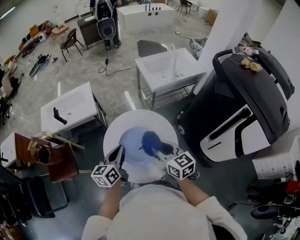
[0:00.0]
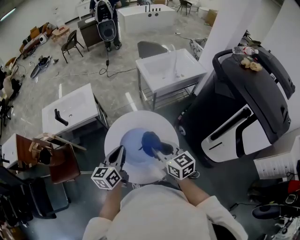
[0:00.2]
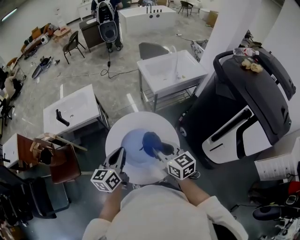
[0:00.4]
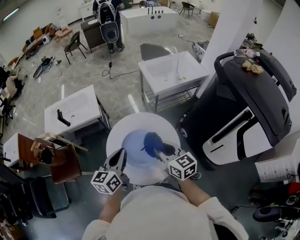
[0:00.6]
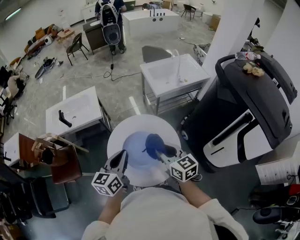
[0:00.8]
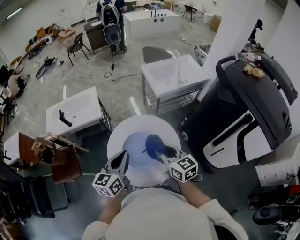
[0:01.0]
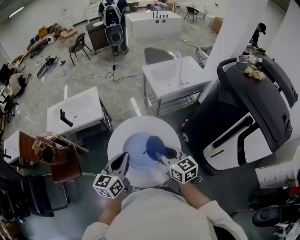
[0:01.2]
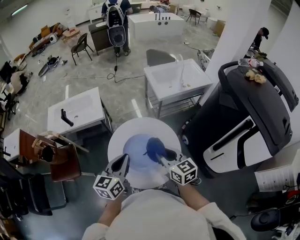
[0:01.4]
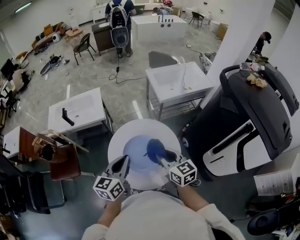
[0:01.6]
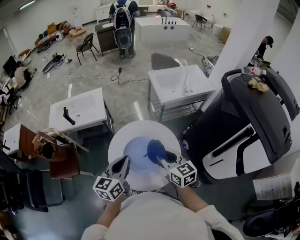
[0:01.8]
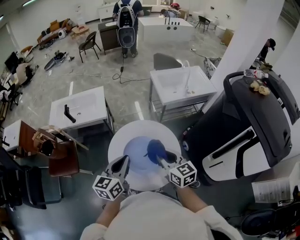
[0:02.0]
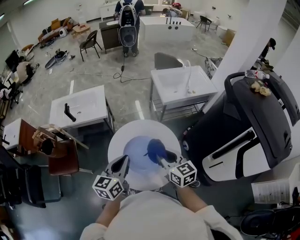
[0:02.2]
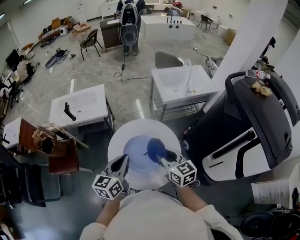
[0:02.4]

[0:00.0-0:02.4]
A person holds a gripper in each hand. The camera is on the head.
0:00.0 to 0:01.2: The left gripper goes some 5 cm upward.
0:01.2 to 0:02.4: Neither gripper changes place.

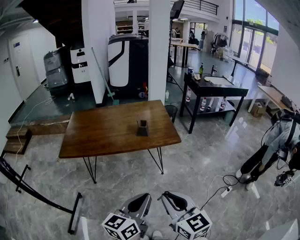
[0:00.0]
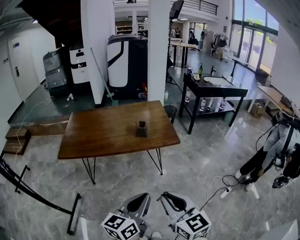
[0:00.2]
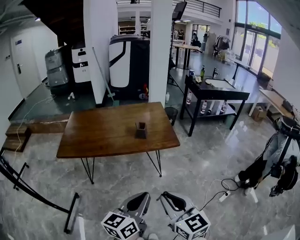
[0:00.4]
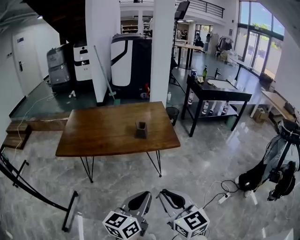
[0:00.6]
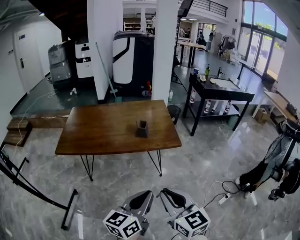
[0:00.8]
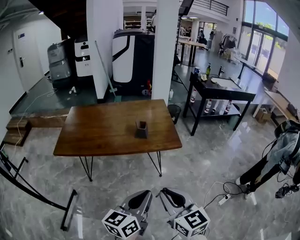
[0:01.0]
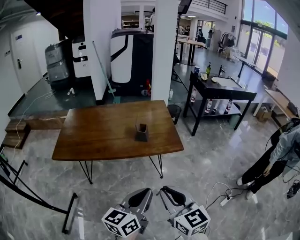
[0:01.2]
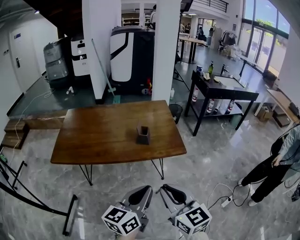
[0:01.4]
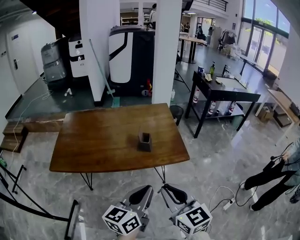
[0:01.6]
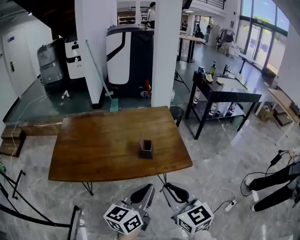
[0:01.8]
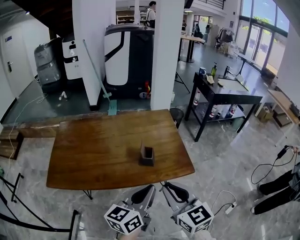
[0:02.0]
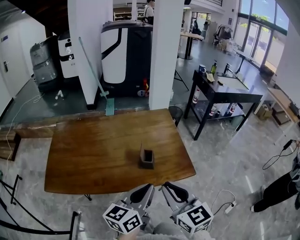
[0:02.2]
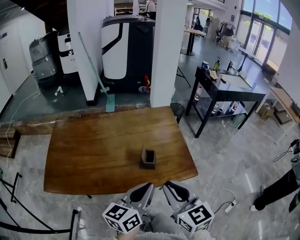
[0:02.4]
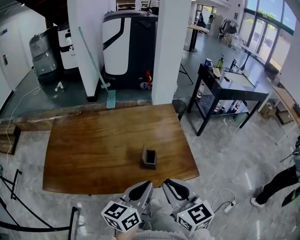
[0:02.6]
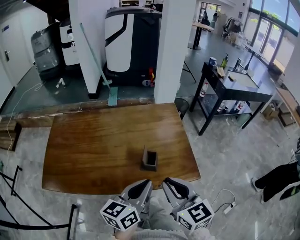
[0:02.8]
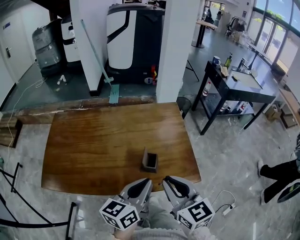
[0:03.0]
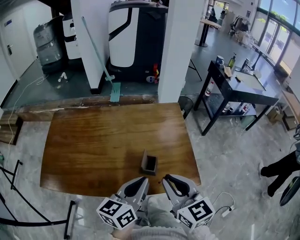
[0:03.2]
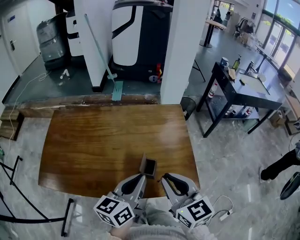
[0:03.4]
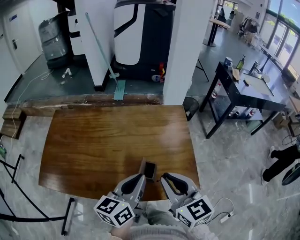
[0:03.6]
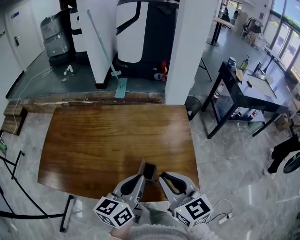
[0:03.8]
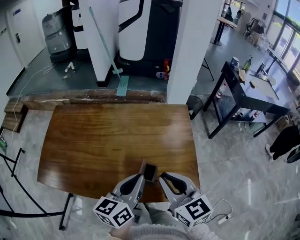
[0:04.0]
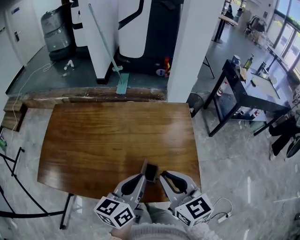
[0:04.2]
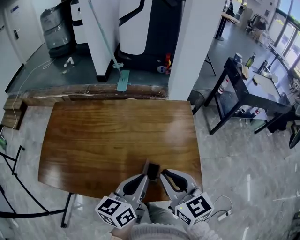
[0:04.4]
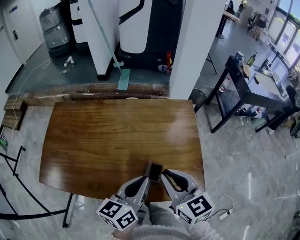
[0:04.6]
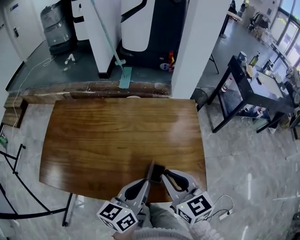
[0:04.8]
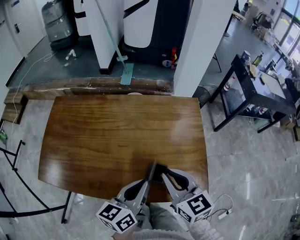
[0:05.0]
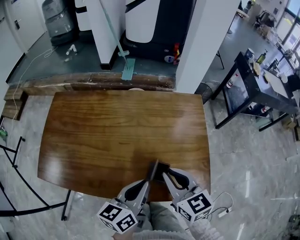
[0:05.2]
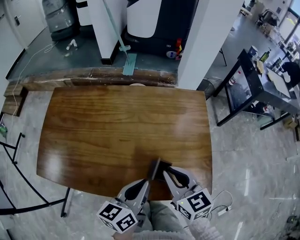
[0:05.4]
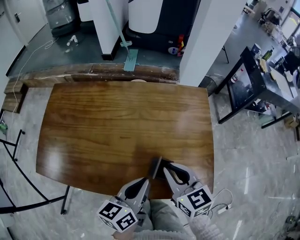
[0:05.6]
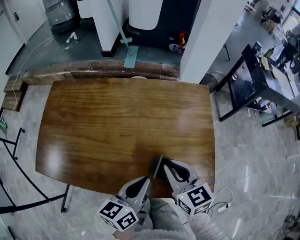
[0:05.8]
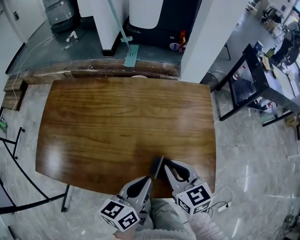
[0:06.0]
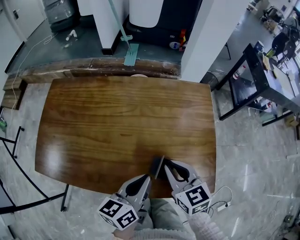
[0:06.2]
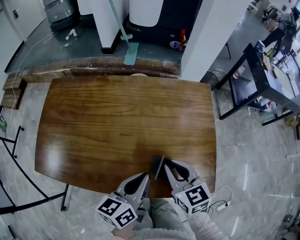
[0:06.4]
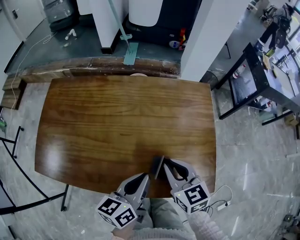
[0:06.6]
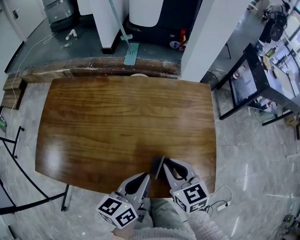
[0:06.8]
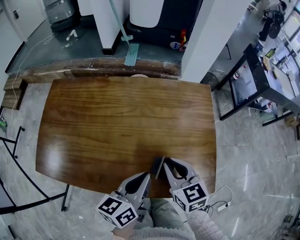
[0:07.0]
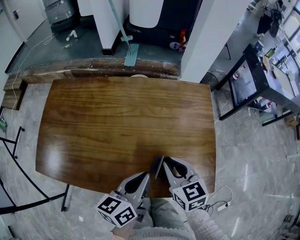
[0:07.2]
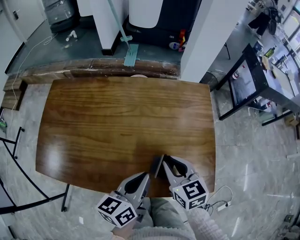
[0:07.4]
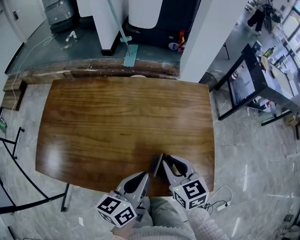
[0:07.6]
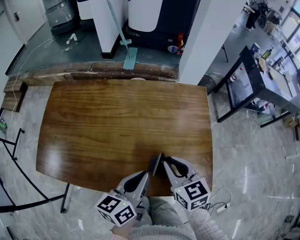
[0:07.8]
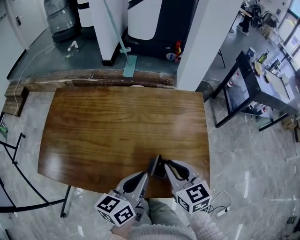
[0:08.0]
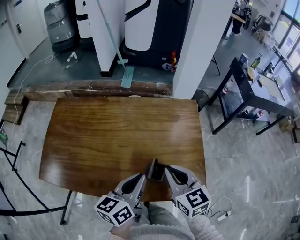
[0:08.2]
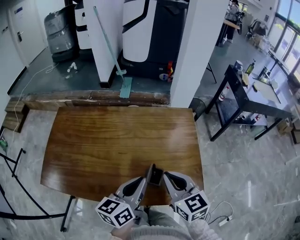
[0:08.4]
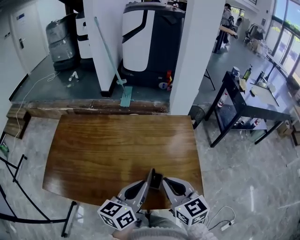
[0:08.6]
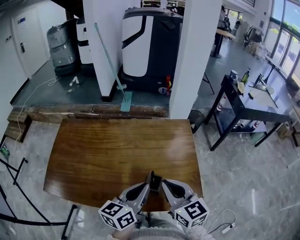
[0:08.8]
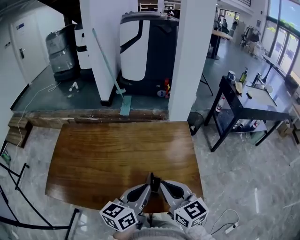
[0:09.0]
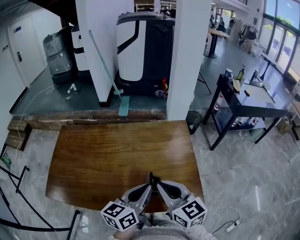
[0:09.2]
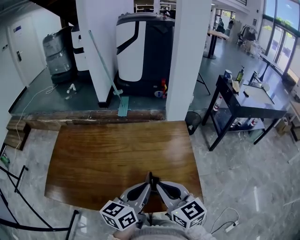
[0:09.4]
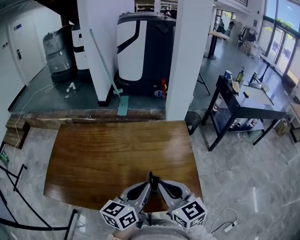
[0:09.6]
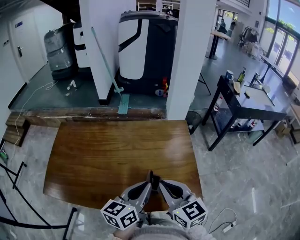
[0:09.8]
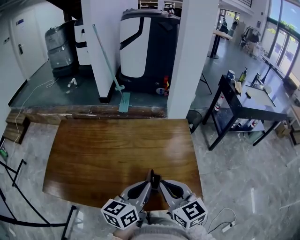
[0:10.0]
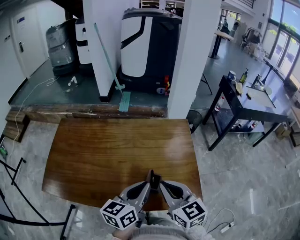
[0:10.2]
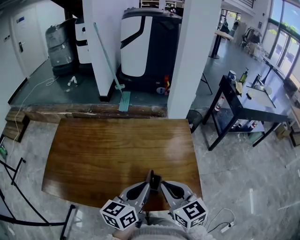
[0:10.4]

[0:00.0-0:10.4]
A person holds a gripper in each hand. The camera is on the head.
0:00.0 to 0:01.4: The grippers both shift forward by roughly 15 cm.
0:01.4 to 0:03.0: The grippers both shift forward by roughly 30 cm.
0:03.0 to 0:04.4: The grippers both shift forward by some 10 cm.
0:04.4 to 0:06.0: Both grippers travel together downward, approximately 10 cm.
0:06.0 to 0:07.4: The grippers make only small movements.
0:07.4 to 0:09.0: The right gripper moves upward and backward, about 15 cm. The left gripper shifts roughly 10 cm upward.
0:09.0 to 0:10.4: The grippers stay close to where they were, moving slightly.

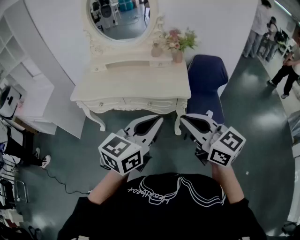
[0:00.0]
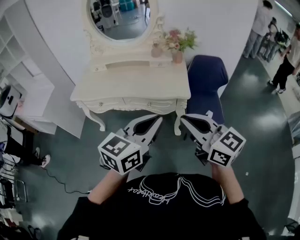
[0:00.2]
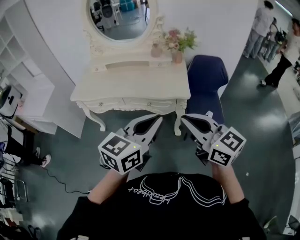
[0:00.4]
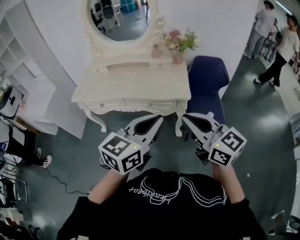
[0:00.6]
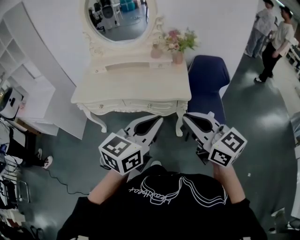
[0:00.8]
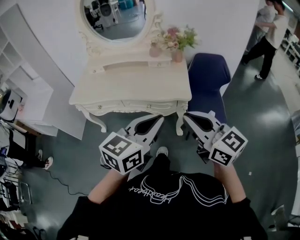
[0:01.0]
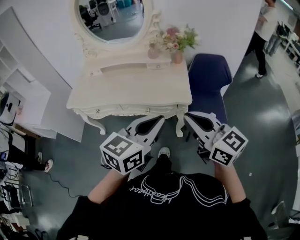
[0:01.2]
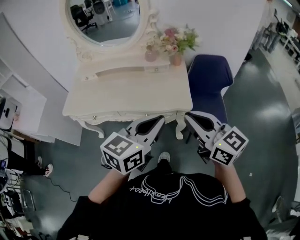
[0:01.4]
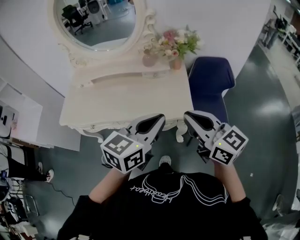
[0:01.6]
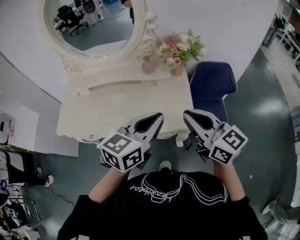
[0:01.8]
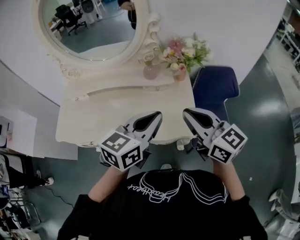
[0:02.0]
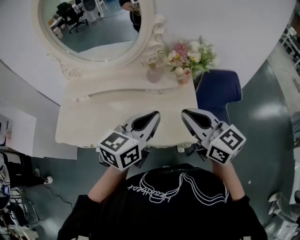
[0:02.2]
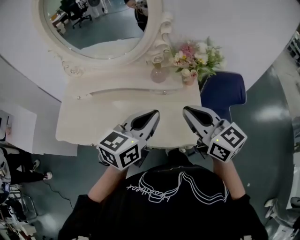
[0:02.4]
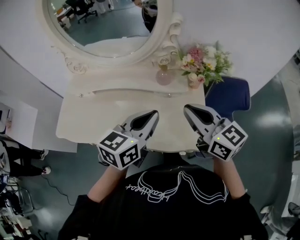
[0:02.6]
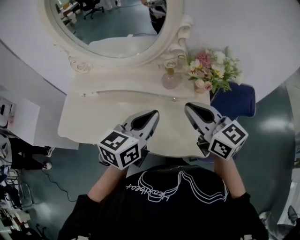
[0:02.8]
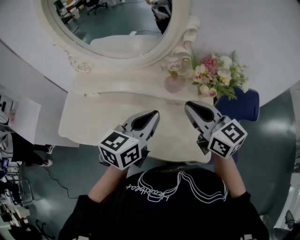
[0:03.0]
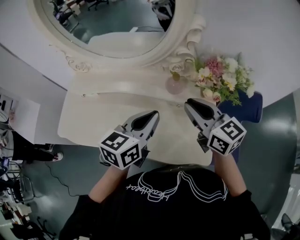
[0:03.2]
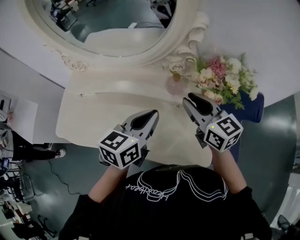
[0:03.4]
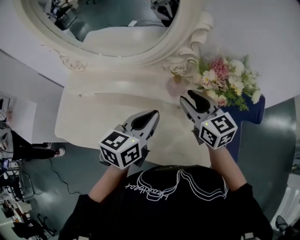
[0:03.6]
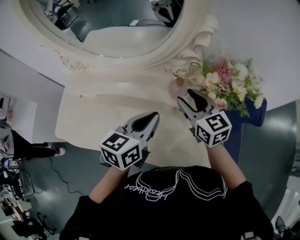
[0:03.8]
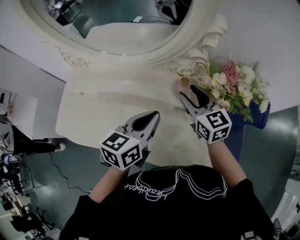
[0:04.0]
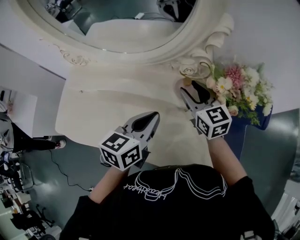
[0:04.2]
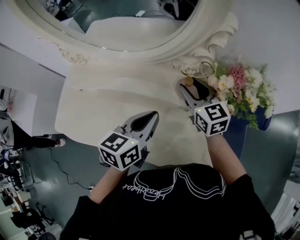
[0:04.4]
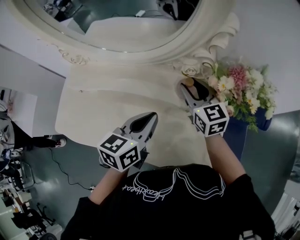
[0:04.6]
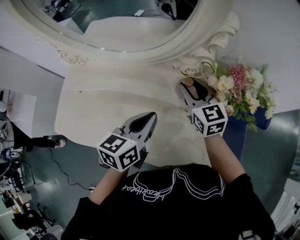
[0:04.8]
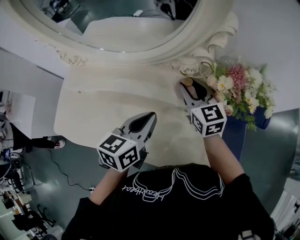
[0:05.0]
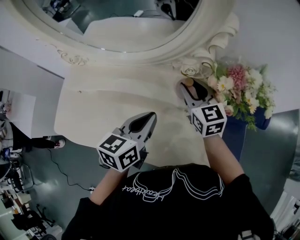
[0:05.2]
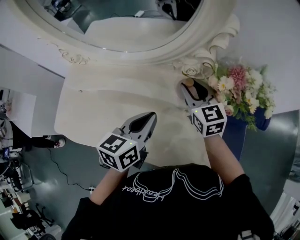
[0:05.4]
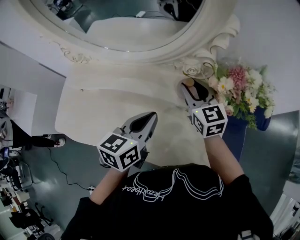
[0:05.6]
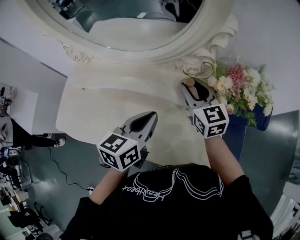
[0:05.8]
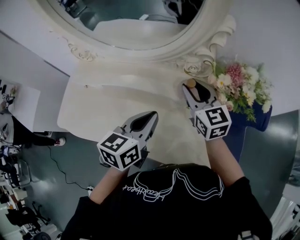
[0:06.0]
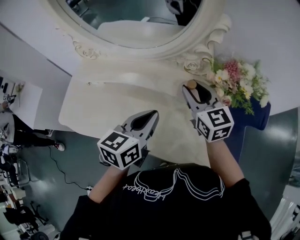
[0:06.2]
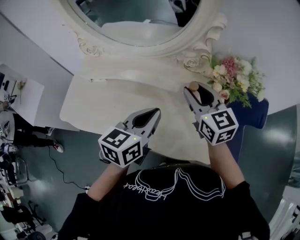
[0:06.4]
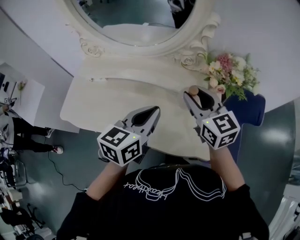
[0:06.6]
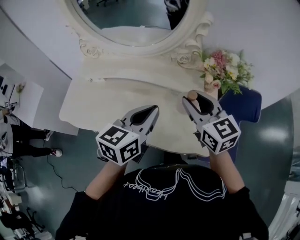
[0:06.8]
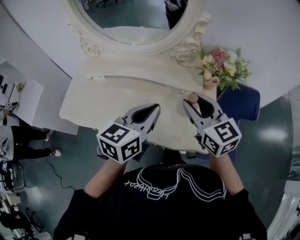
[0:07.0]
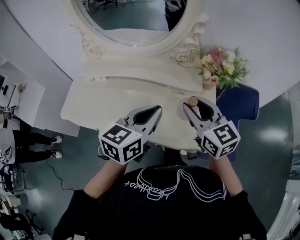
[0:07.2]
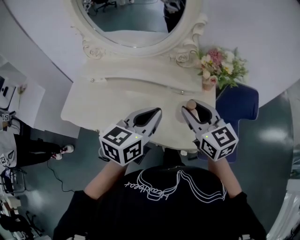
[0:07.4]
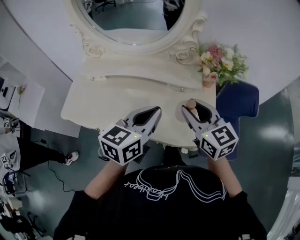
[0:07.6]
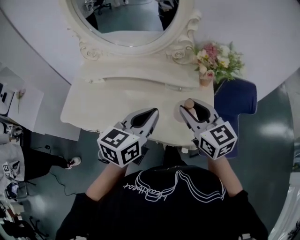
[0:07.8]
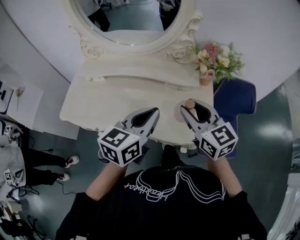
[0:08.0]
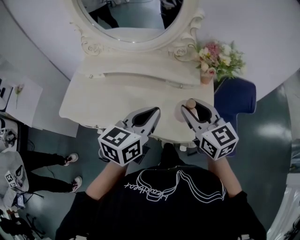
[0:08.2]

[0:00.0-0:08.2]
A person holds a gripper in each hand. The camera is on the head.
0:00.0 to 0:01.6: Both grippers move forward, about 20 cm.
0:01.6 to 0:03.2: The grippers both shift forward by about 30 cm.
0:03.2 to 0:05.0: The left gripper heads downward and forward, covering some 10 cm; the right gripper goes about 15 cm forward and downward, and opens its fingers.
0:05.0 to 0:06.6: Both grippers travel together backward and upward, approximately 15 cm.
0:06.6 to 0:08.2: The right gripper heads backward, covering roughly 10 cm. Meanwhile the left gripper is displaced backward by some 10 cm.

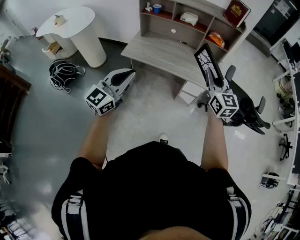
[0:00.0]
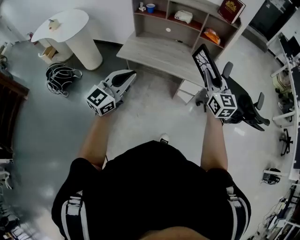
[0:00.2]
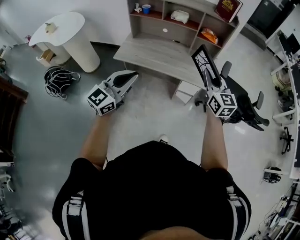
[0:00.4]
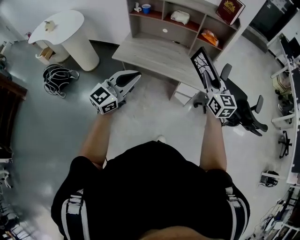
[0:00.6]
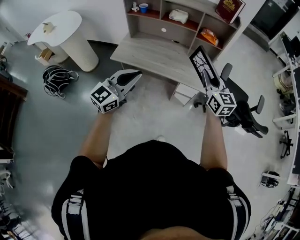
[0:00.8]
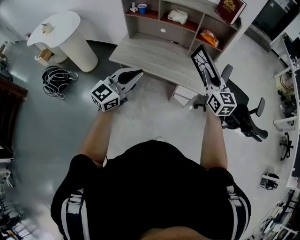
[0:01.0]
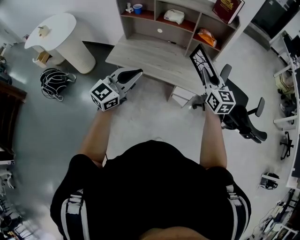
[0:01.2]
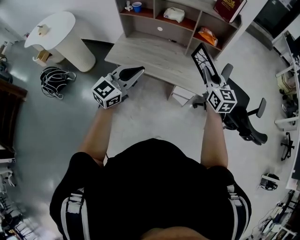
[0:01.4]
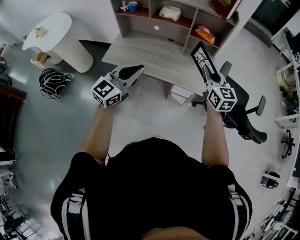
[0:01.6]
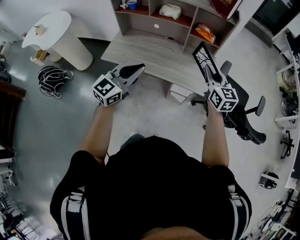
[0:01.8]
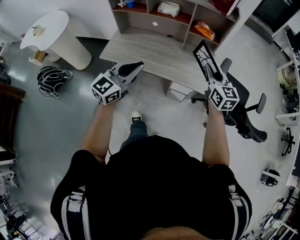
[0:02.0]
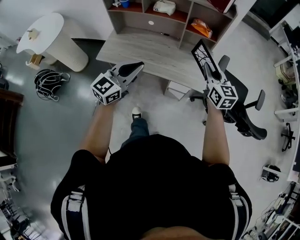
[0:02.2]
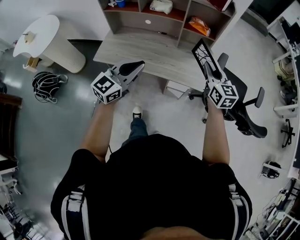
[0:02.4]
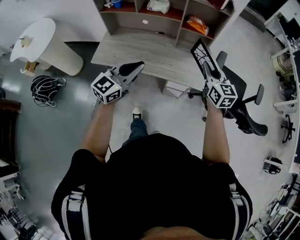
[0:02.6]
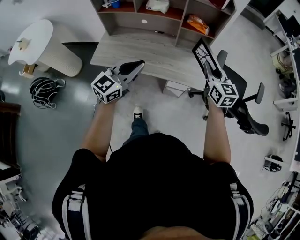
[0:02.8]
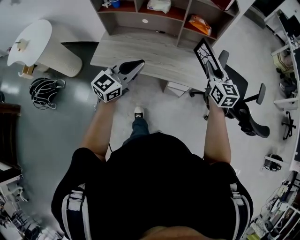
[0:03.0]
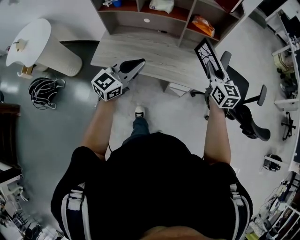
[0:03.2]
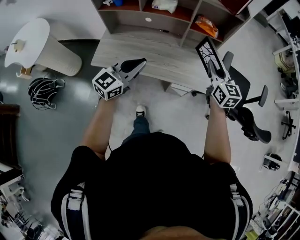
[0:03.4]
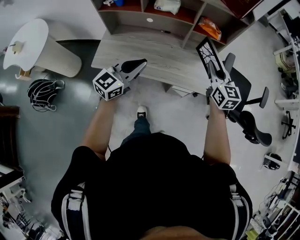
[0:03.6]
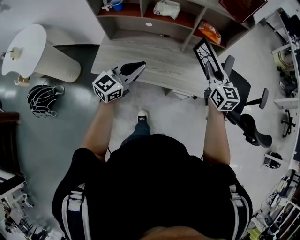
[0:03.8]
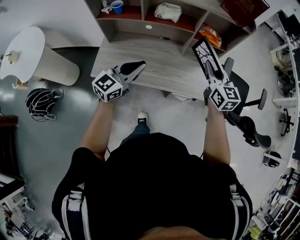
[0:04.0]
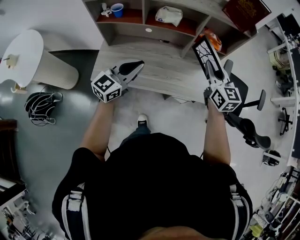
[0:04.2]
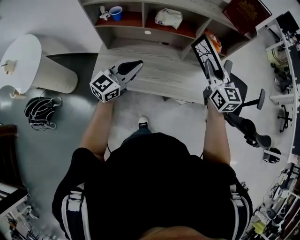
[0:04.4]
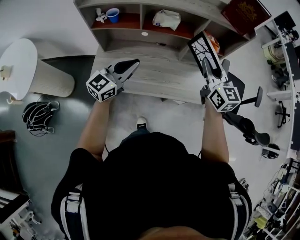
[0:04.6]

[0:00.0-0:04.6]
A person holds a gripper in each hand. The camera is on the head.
0:00.0 to 0:01.6: Both grippers travel together forward and to the right, approximately 25 cm.
0:01.6 to 0:03.0: Both grippers move forward, approximately 10 cm.
0:03.0 to 0:04.6: Both grippers move to the left and forward, about 20 cm.
